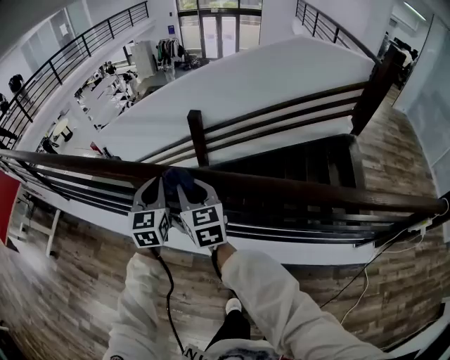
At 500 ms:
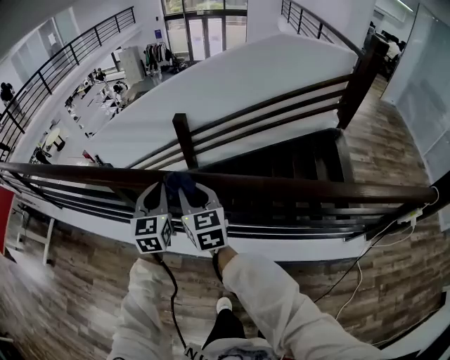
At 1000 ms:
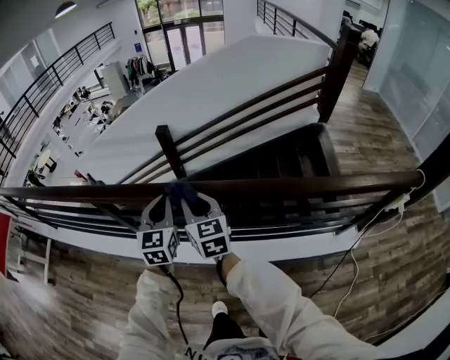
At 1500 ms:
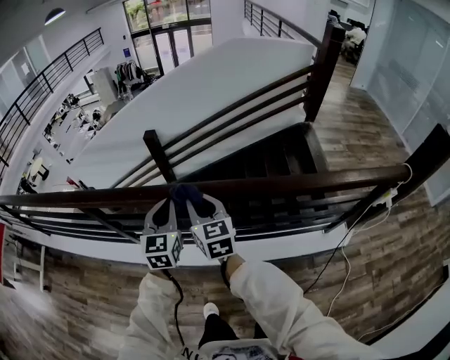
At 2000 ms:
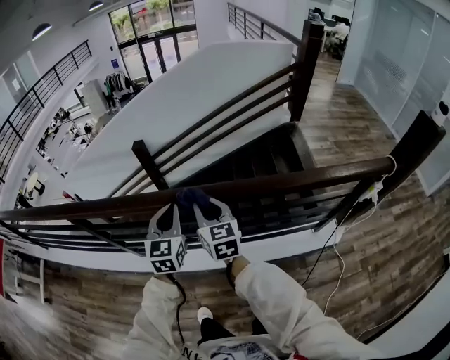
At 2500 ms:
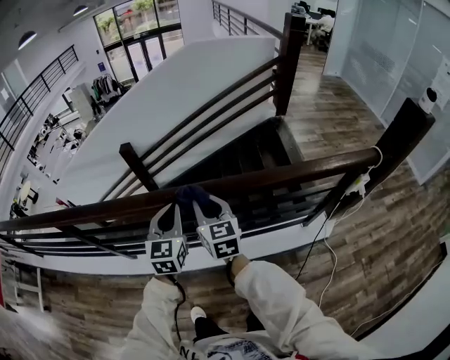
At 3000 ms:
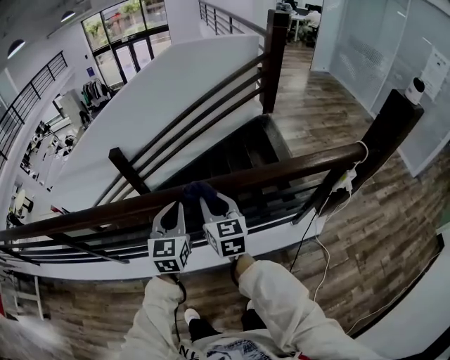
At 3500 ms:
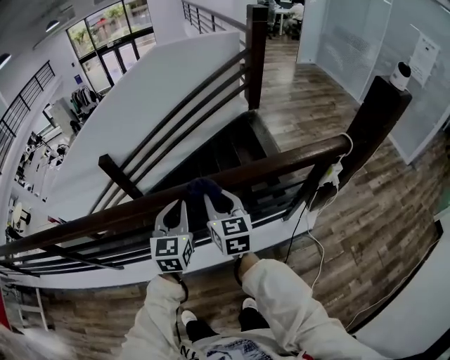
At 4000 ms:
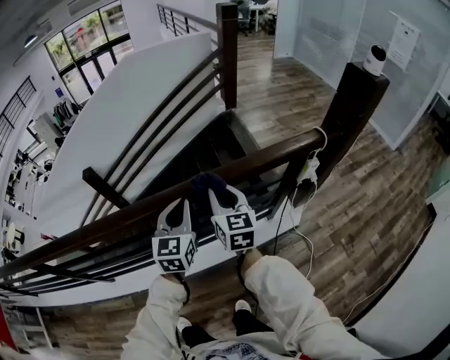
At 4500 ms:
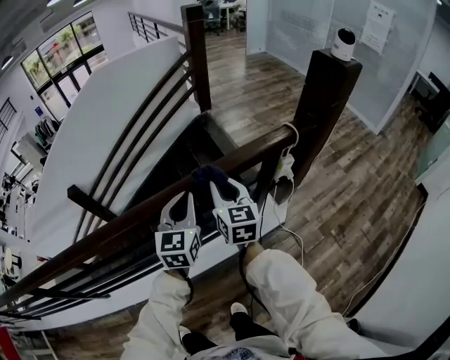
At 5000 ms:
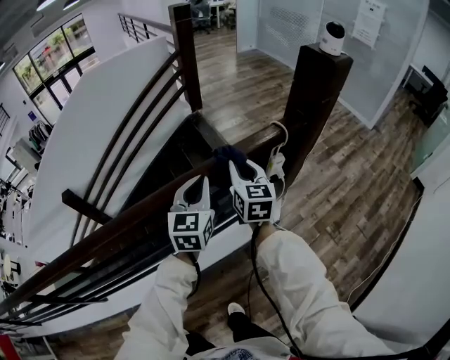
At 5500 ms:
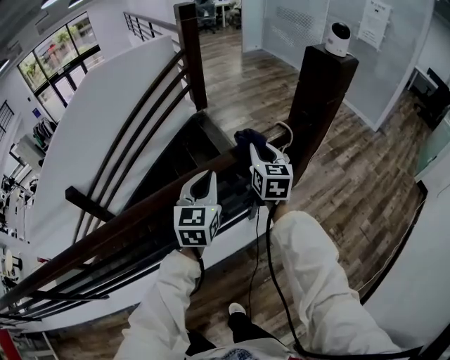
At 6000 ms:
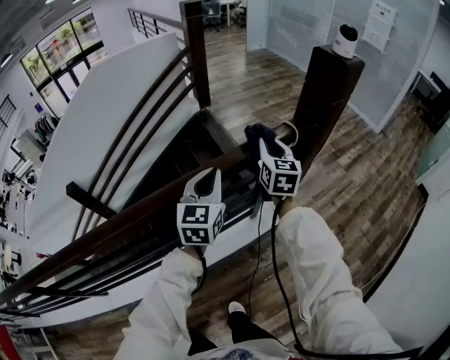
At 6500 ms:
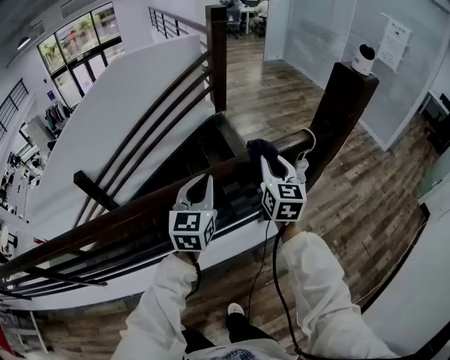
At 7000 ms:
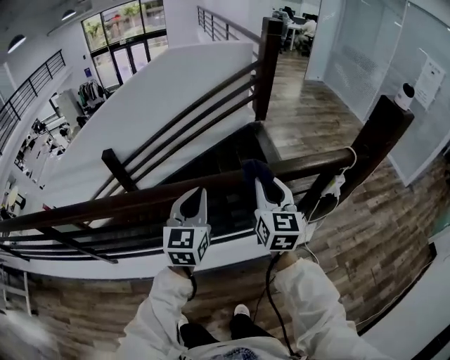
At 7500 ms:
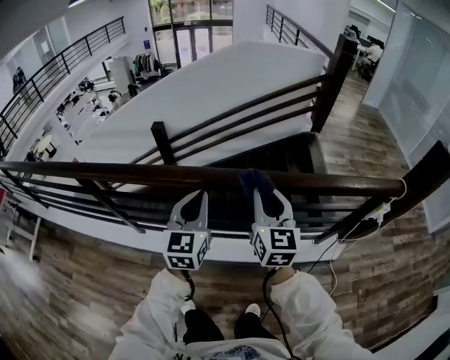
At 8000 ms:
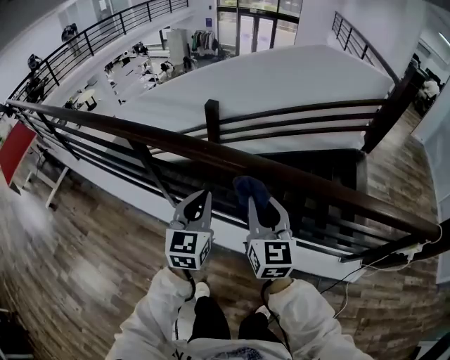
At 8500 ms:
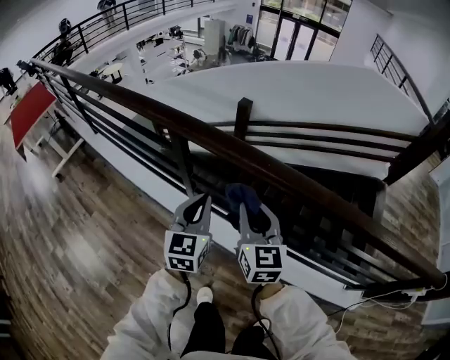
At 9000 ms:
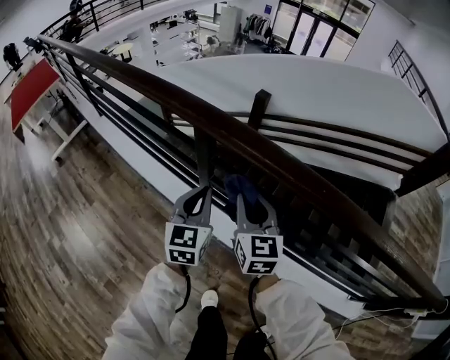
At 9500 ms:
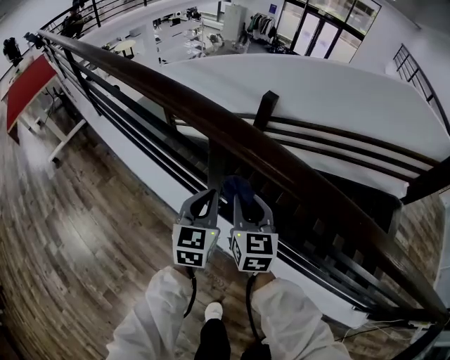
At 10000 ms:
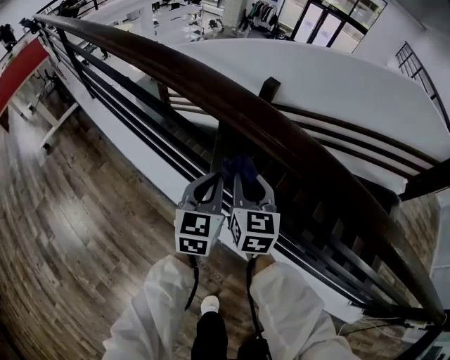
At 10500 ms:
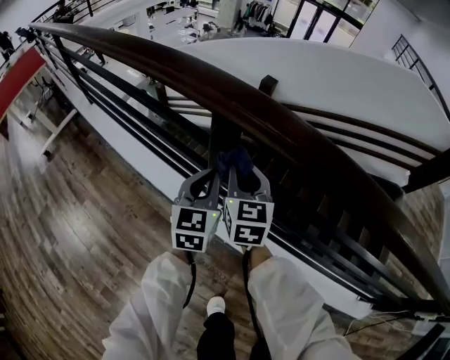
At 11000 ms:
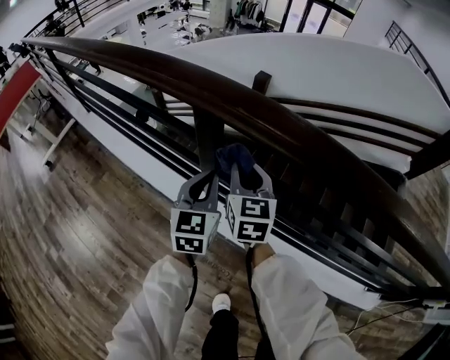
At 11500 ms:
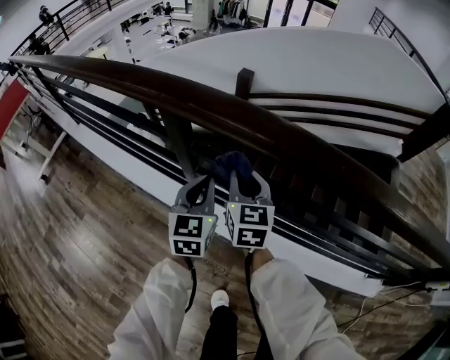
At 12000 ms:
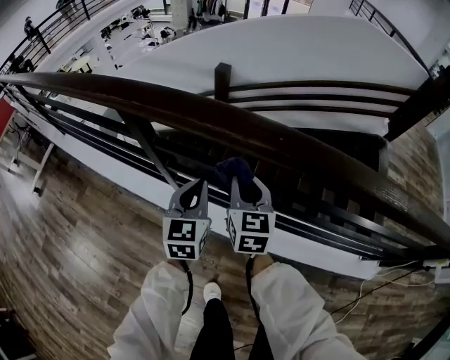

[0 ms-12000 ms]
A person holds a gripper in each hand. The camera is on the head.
0 ms to 2000 ms: Both grippers travel together to the right, roughly 40 cm.
2000 ms to 4000 ms: The two grippers go about 35 cm to the right. The right gripper swivels about 20 degrees.
4000 ms to 6000 ms: The grippers both shift to the right and forward by approximately 25 cm. The right gripper swivels approximately 20 degrees.
6000 ms to 8000 ms: The pair of grippers is taken approximately 70 cm. The left gripper turns by approximately 50 degrees. Meanwhile the right gripper changes its angle by roughly 50 degrees.
8000 ms to 10000 ms: The two grippers go some 50 cm to the left, forward and downward.
10000 ms to 12000 ms: Both grippers travel together to the right and backward, roughly 20 cm.

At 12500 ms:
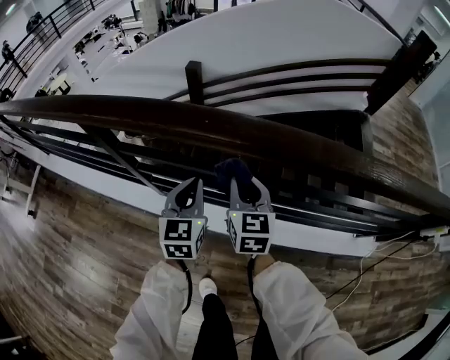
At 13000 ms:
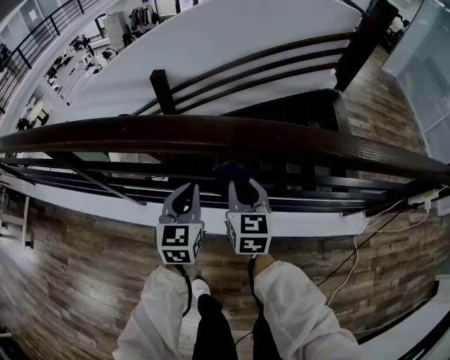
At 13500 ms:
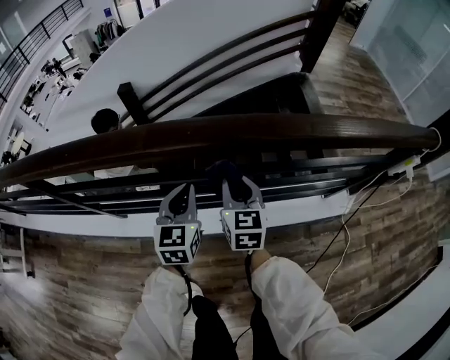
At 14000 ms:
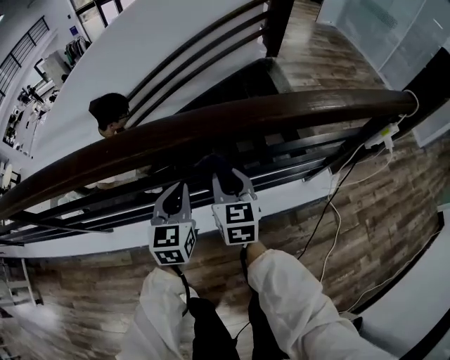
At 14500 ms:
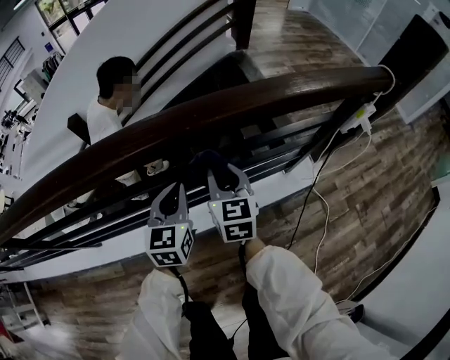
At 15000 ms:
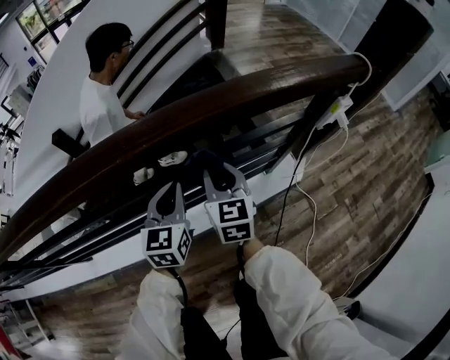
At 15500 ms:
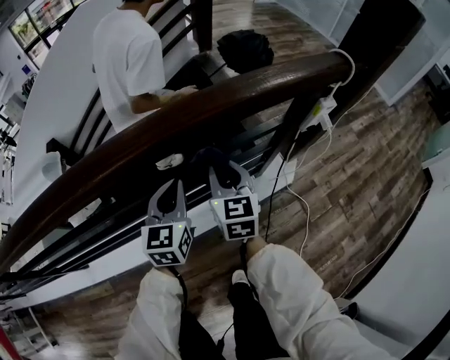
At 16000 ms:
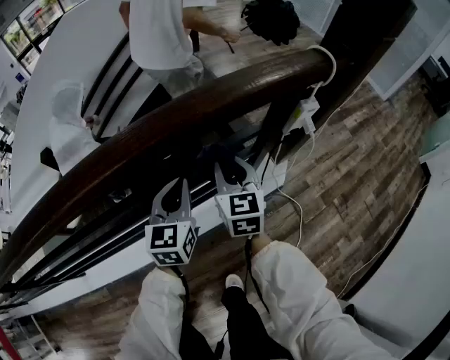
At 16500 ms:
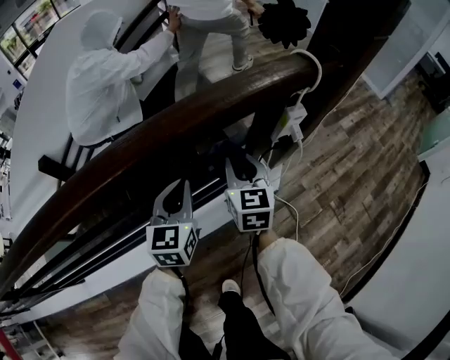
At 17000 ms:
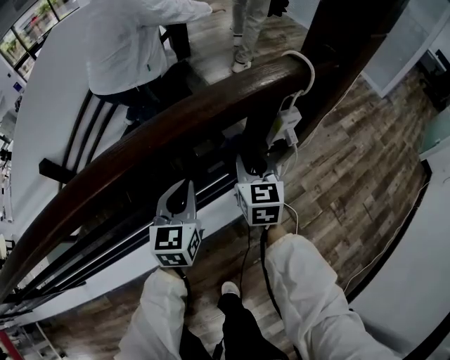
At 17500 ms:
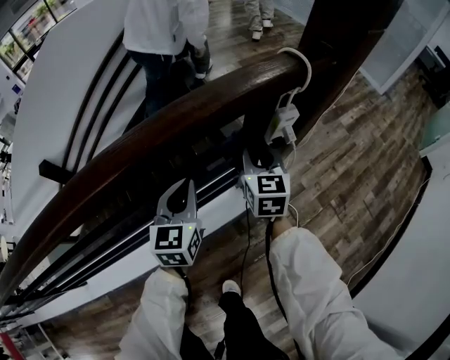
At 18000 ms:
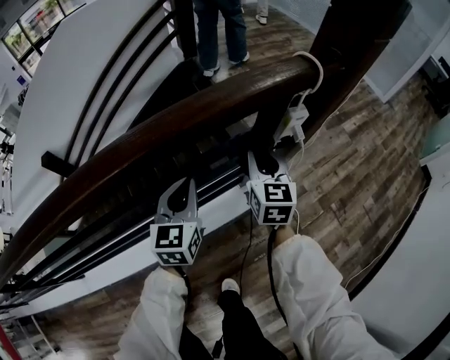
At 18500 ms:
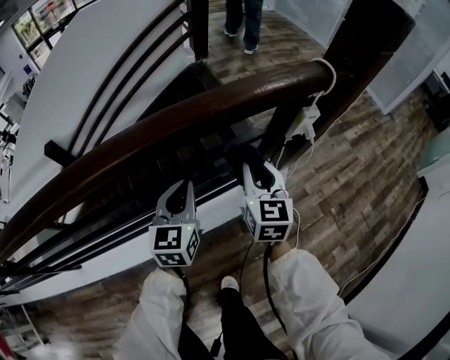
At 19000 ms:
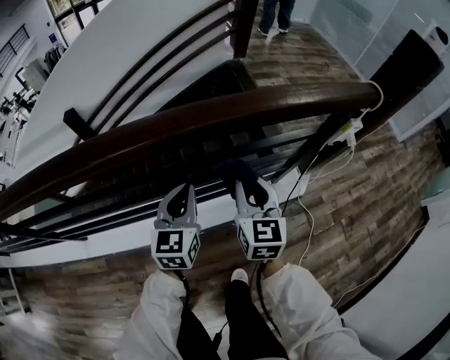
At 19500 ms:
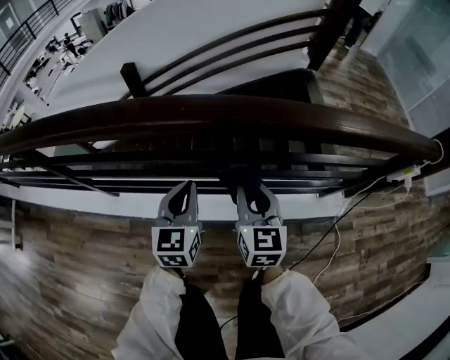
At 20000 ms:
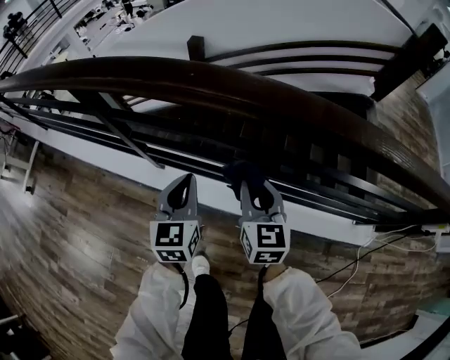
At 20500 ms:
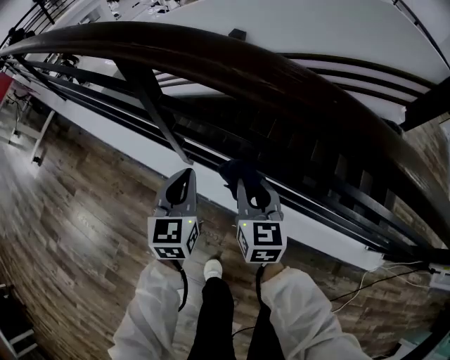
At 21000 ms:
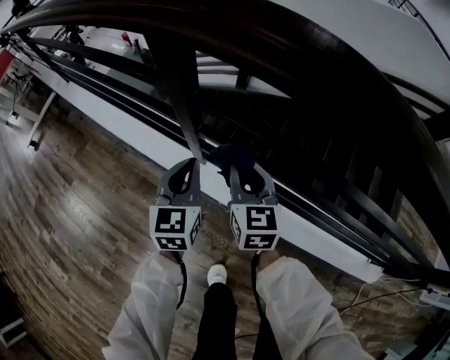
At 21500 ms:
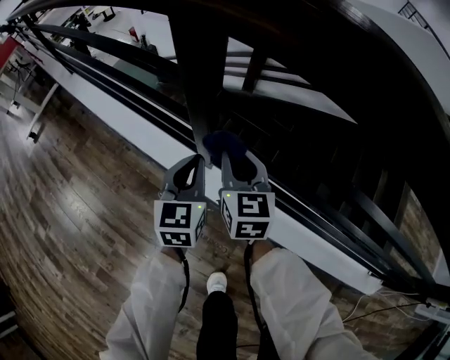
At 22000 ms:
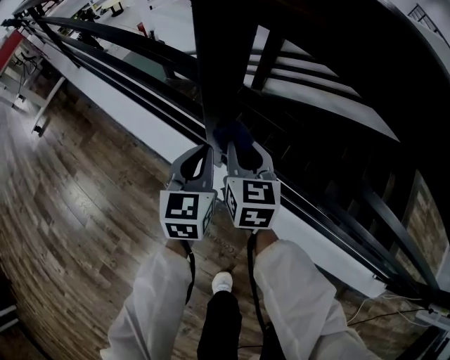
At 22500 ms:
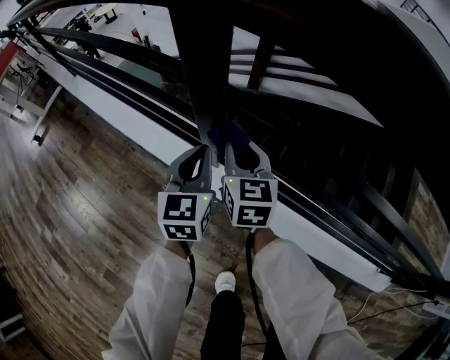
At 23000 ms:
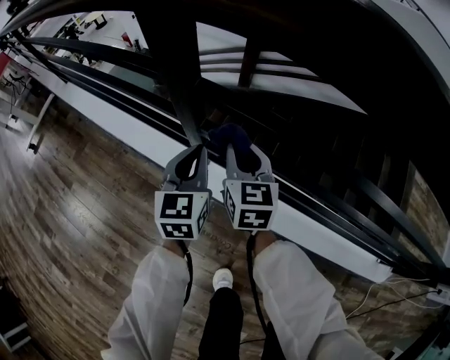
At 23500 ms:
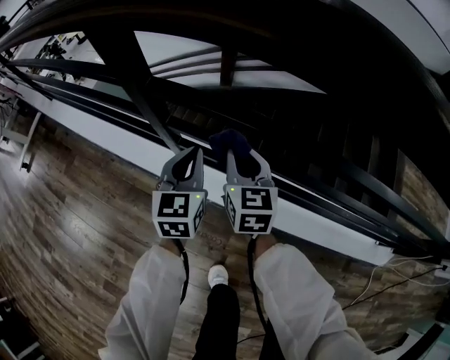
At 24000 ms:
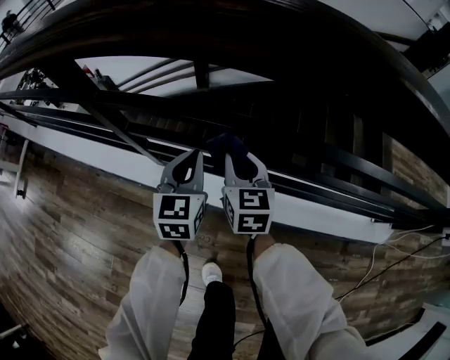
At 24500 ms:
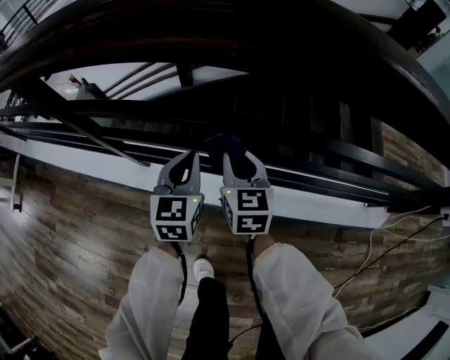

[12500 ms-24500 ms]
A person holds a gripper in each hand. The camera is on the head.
12500 ms to 14500 ms: The pair of grippers is taken about 50 cm. The left gripper swivels about 30 degrees. The right gripper turns by some 20 degrees.
14500 ms to 16500 ms: The right gripper travels to the right by roughly 35 cm. The left gripper goes approximately 30 cm to the right and forward.
16500 ms to 18500 ms: Both grippers travel together backward, approximately 5 cm.
18500 ms to 20500 ms: The pair of grippers is taken about 90 cm. The right gripper swivels approximately 50 degrees, while the left gripper turns by roughly 50 degrees.
20500 ms to 22500 ms: The right gripper heads to the left, forward and downward, covering some 25 cm. The left gripper is displaced forward, downward and to the left by about 15 cm.
22500 ms to 24500 ms: The two grippers go approximately 30 cm to the right. The left gripper turns by roughly 20 degrees.

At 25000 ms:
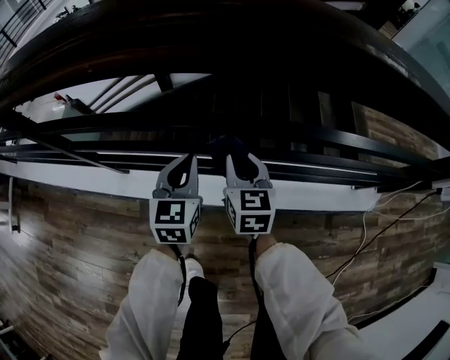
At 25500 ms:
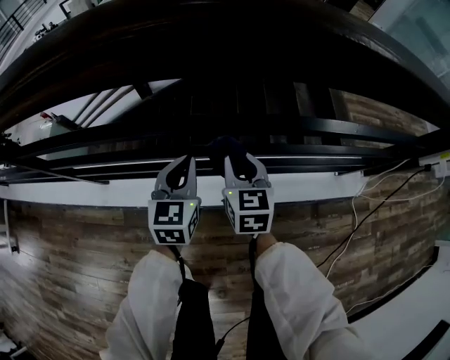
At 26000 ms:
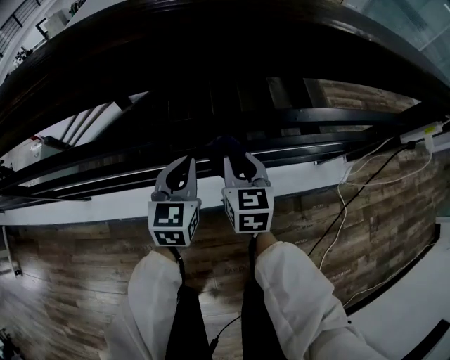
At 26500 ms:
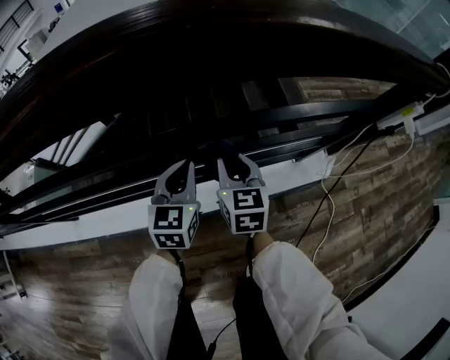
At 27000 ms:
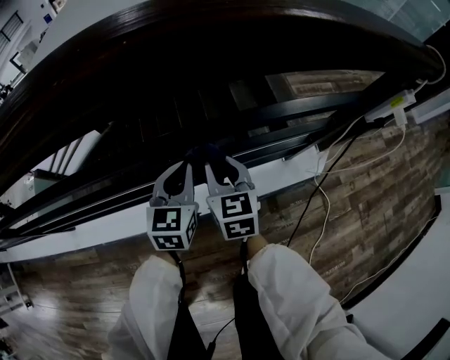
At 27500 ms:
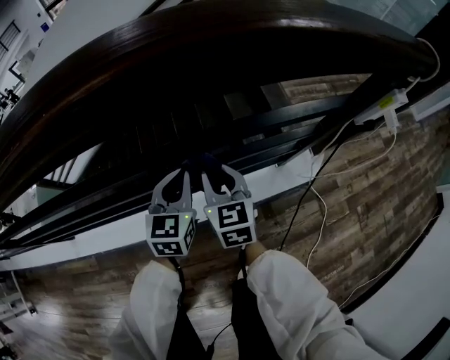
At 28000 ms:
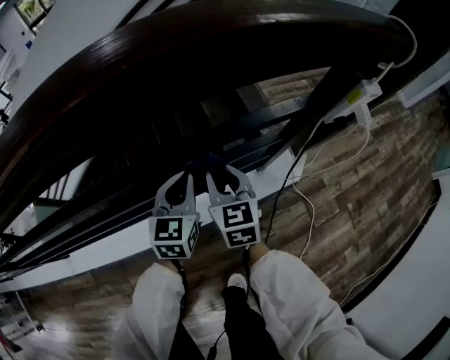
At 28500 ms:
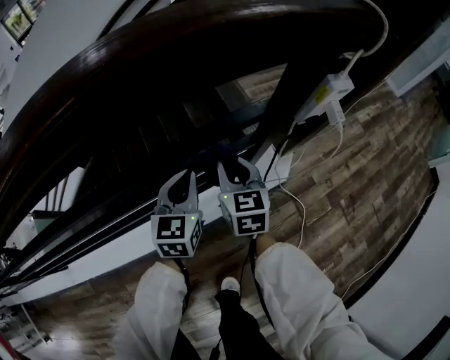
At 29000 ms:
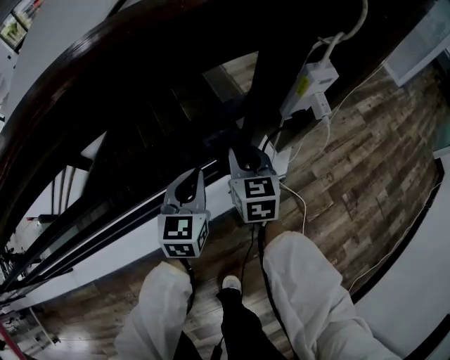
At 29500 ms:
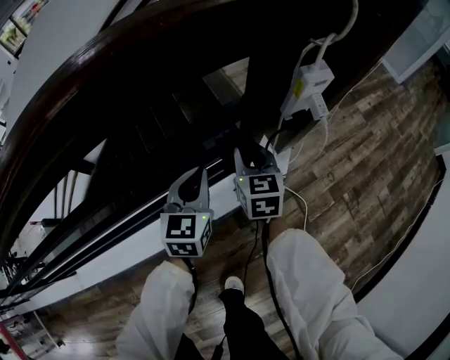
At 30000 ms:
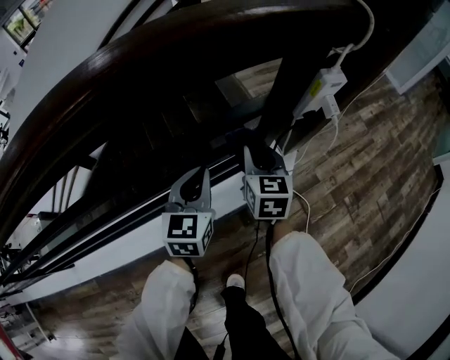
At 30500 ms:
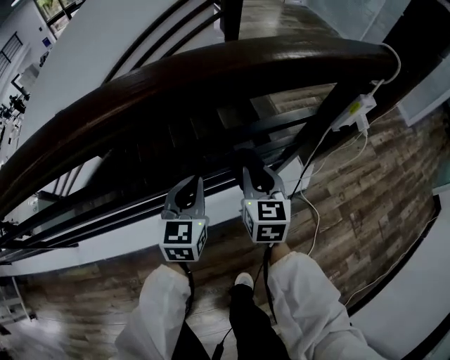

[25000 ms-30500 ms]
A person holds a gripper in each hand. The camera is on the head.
25000 ms to 27000 ms: The two grippers go roughly 40 cm to the right.
27000 ms to 28500 ms: Both grippers move to the right, approximately 25 cm.
28500 ms to 30500 ms: The left gripper is displaced to the left, backward and upward by some 20 cm; the right gripper shifts about 15 cm backward, to the left and upward.
